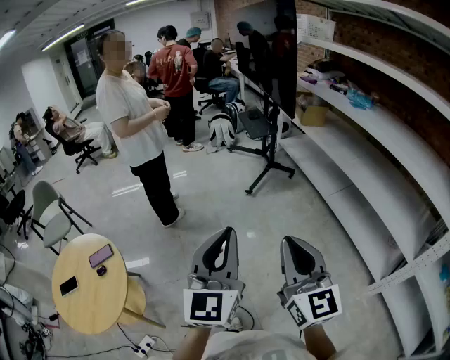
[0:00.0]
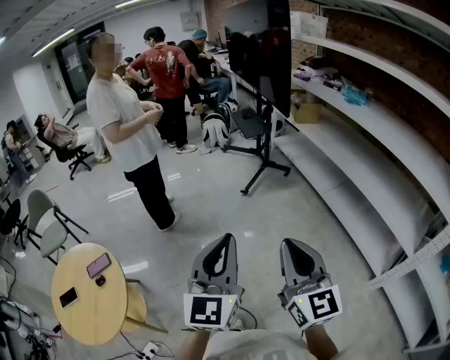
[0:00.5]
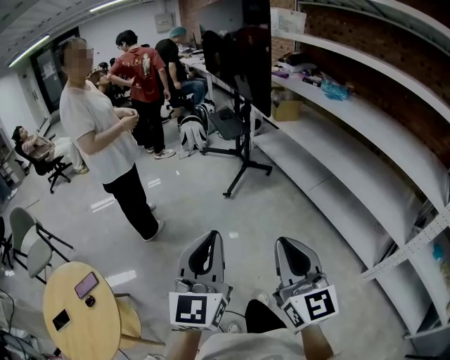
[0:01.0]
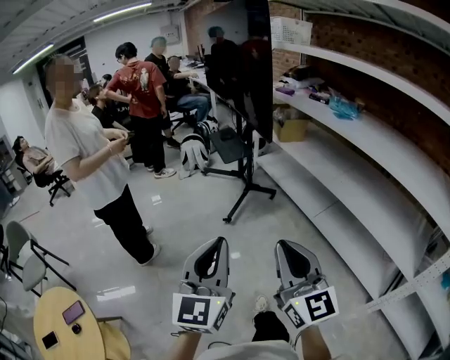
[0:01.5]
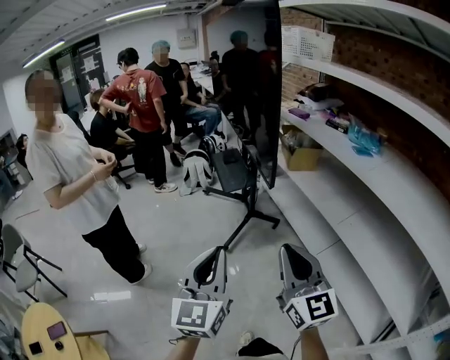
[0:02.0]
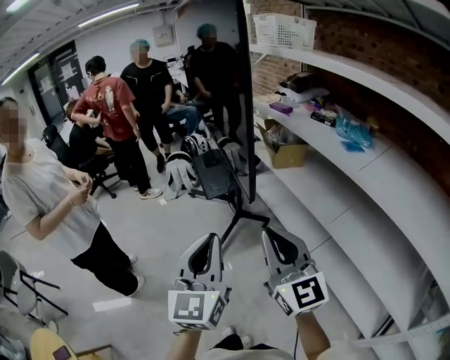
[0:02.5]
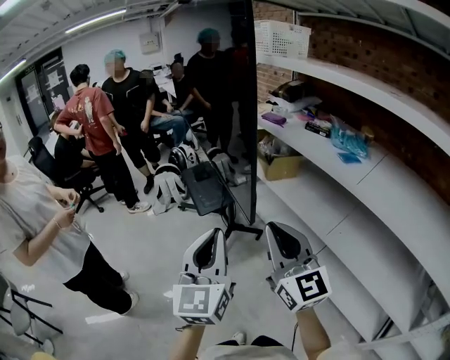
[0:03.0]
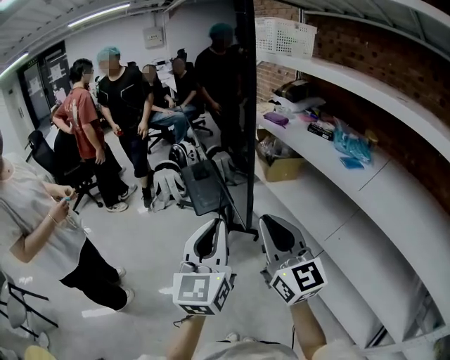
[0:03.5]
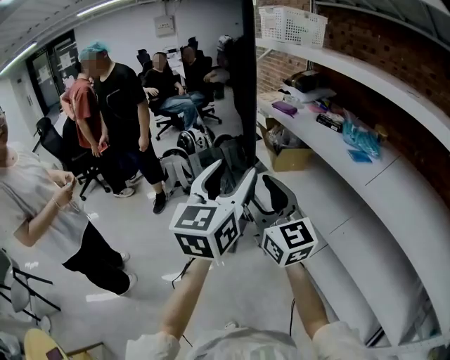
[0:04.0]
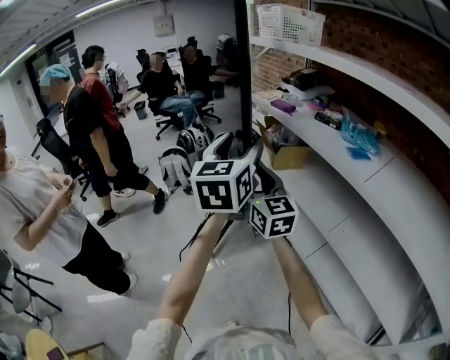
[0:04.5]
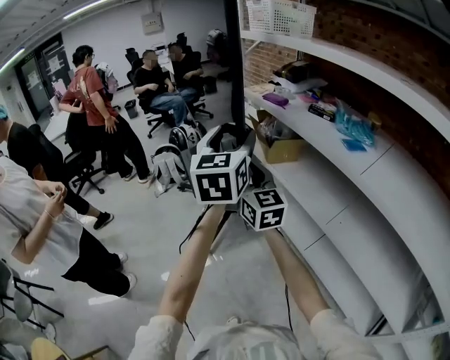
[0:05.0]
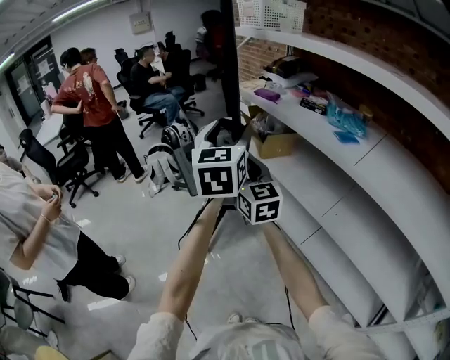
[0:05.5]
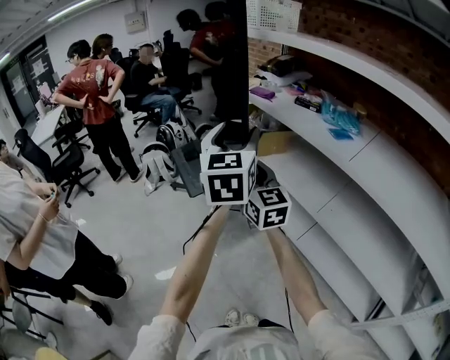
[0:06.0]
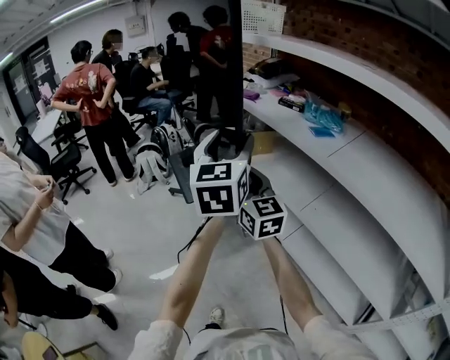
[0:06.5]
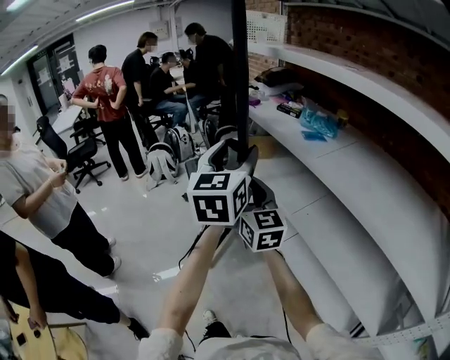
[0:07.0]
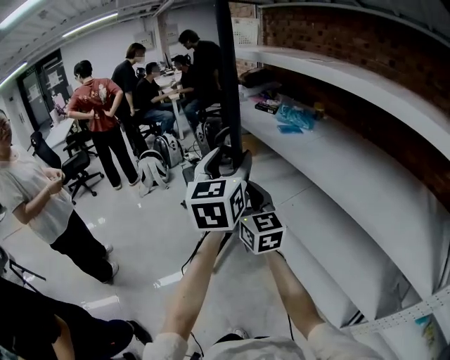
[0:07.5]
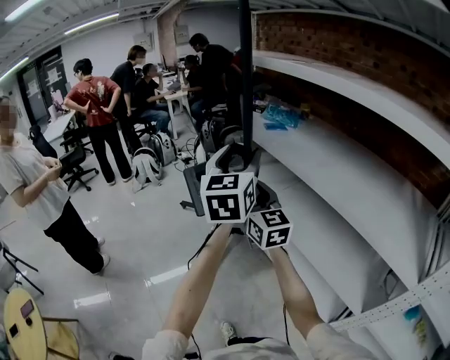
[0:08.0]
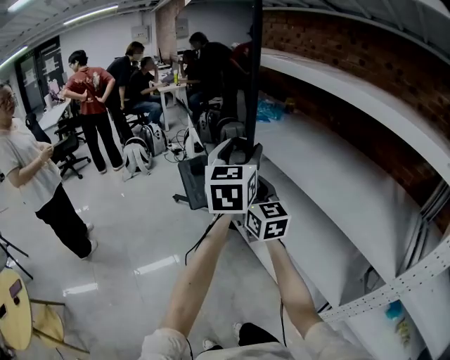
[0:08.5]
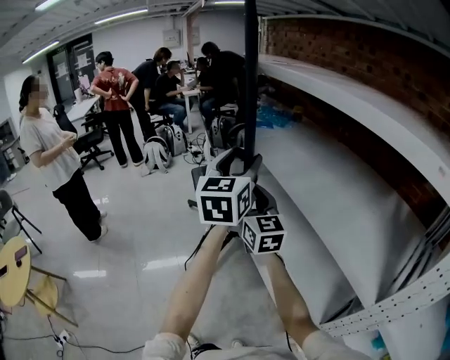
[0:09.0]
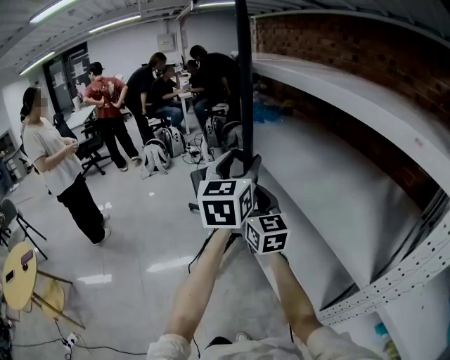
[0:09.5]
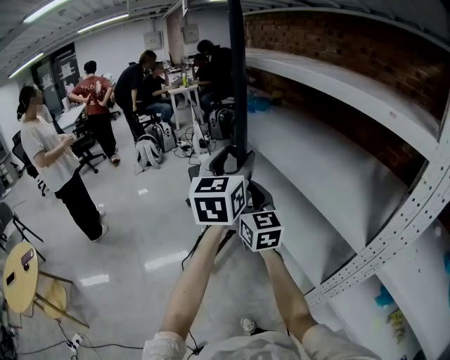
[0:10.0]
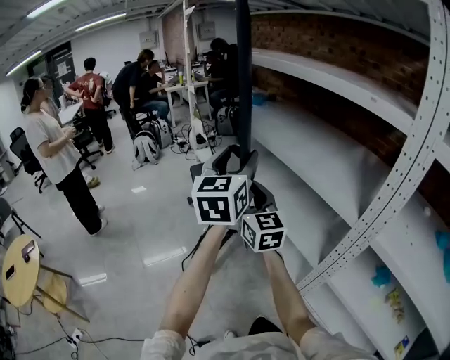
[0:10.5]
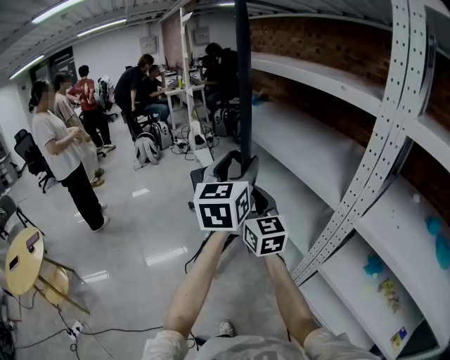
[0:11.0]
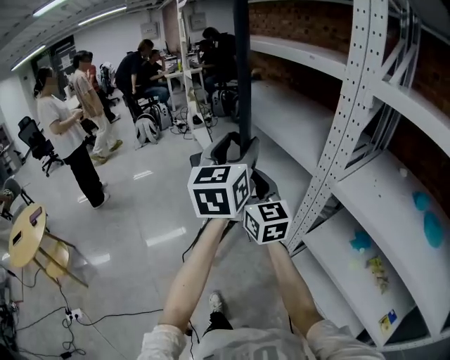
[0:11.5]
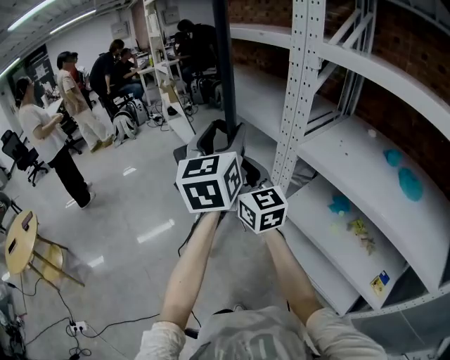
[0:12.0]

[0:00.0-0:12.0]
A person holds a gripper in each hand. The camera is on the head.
0:00.0 to 0:02.0: Both grippers are carried forward, approximately 50 cm.
0:02.0 to 0:04.0: The left gripper heads forward and to the right, covering some 35 cm, and opens. Meanwhile the right gripper moves forward, approximately 30 cm, and opens its fingers.
0:04.0 to 0:06.0: Both grippers move forward, approximately 5 cm.
0:06.0 to 0:08.0: The pair of grippers is taken backward and to the right, approximately 40 cm.
0:08.0 to 0:10.0: The grippers both shift backward and to the right by roughly 30 cm.
0:10.0 to 0:12.0: The two grippers travel together, backward, about 50 cm.

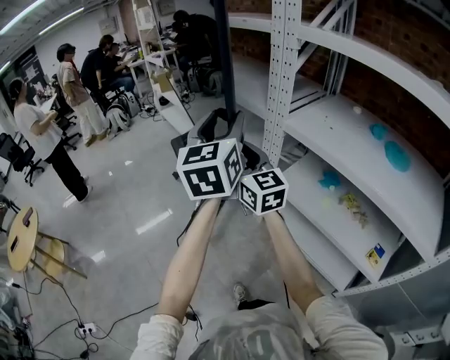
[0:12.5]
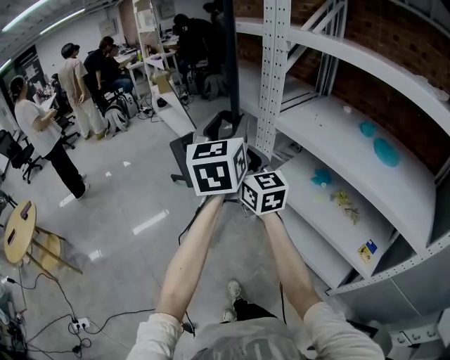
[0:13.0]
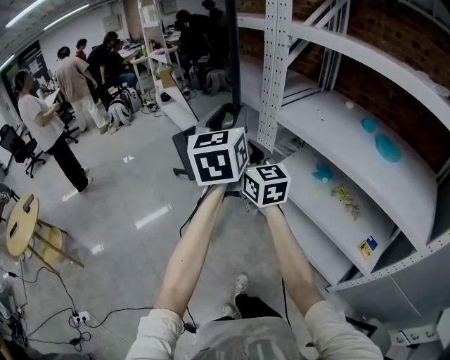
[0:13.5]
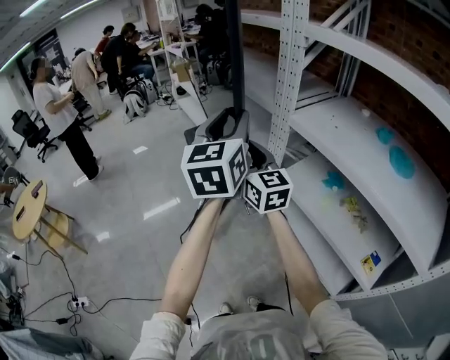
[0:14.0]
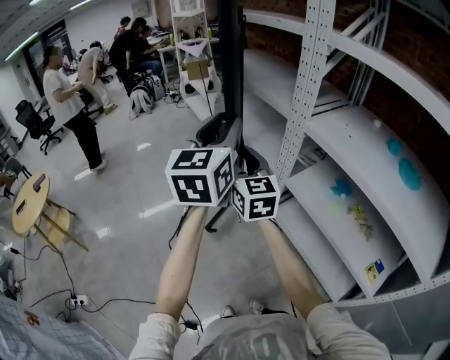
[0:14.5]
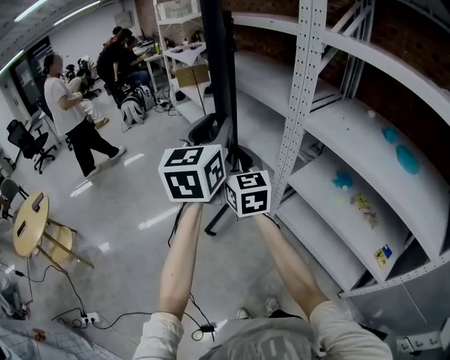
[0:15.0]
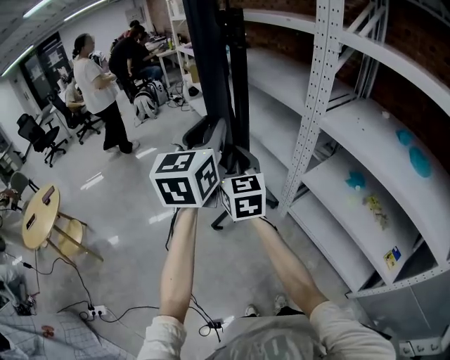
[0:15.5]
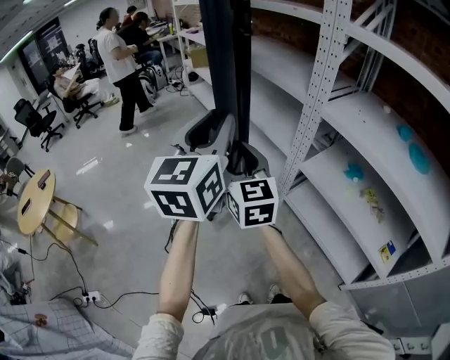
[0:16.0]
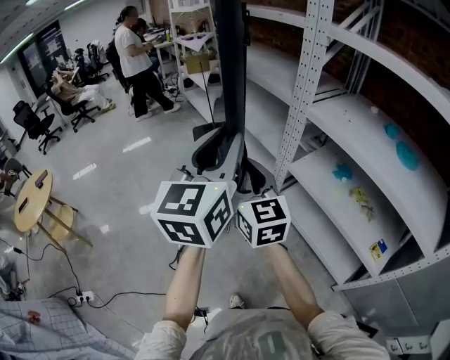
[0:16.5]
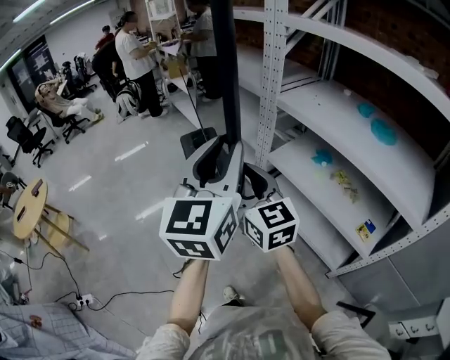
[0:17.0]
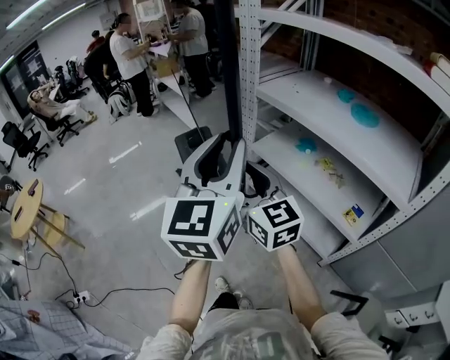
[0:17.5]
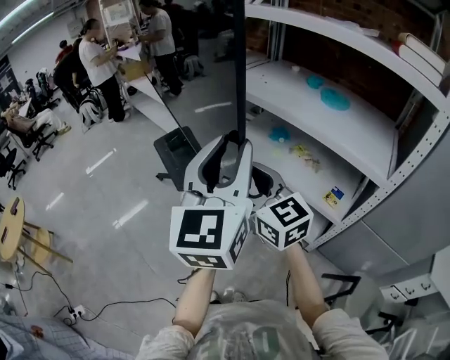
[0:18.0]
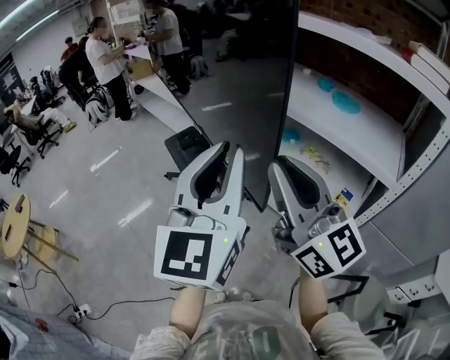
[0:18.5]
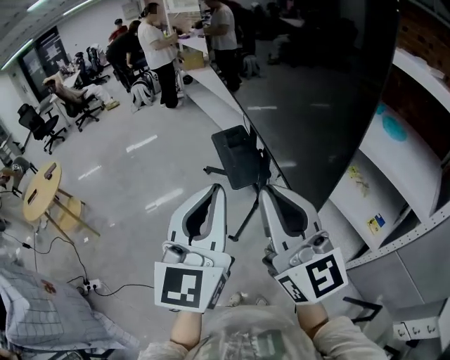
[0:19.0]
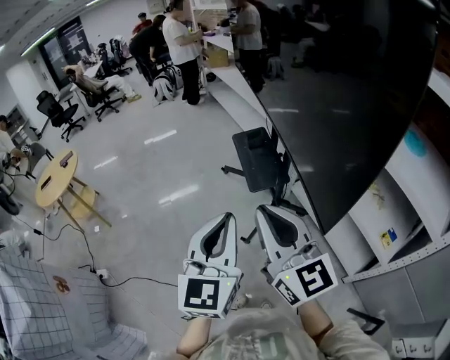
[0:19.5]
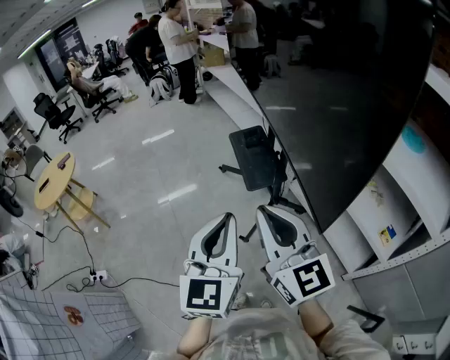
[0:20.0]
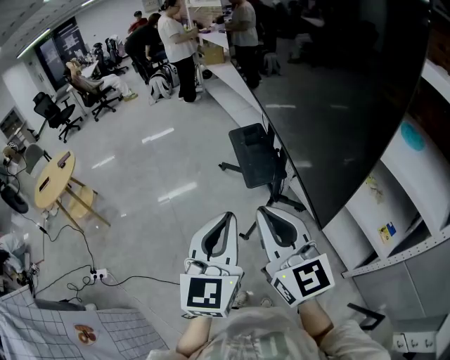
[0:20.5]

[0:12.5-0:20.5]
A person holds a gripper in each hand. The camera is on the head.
0:12.5 to 0:14.5: The grippers both shift to the left by roughly 5 cm.
0:14.5 to 0:16.5: Both grippers travel together backward, roughly 15 cm.
0:16.5 to 0:18.5: The left gripper is displaced backward and to the right by approximately 25 cm. The right gripper is displaced backward, to the right and upward by roughly 35 cm, turns by approximately 20 degrees, and closes up.
0:18.5 to 0:20.5: The two grippers go approximately 20 cm to the left and downward. The right gripper swivels about 20 degrees; the left gripper rotates roughly 30 degrees.

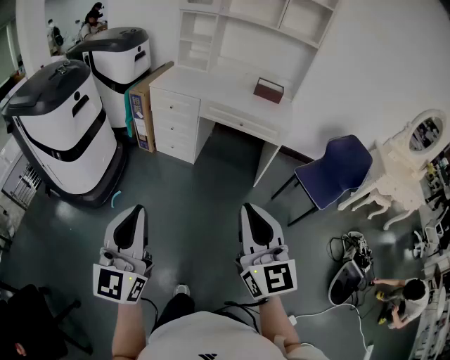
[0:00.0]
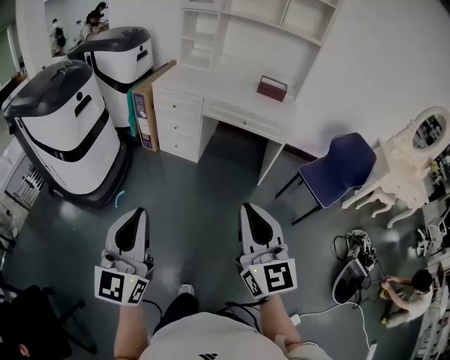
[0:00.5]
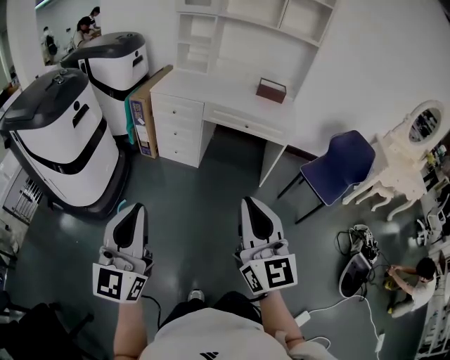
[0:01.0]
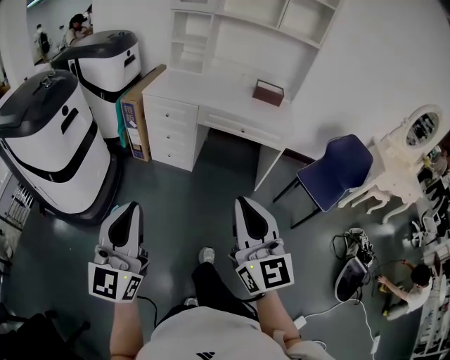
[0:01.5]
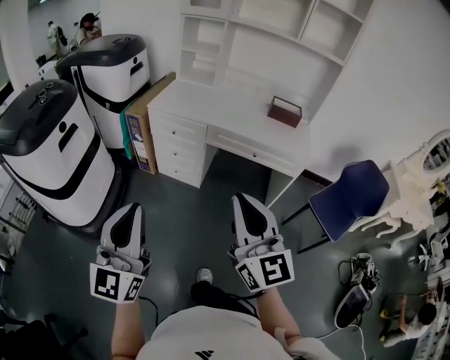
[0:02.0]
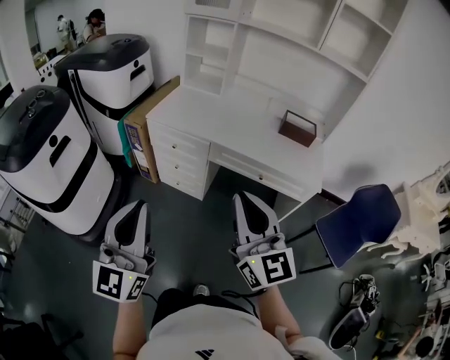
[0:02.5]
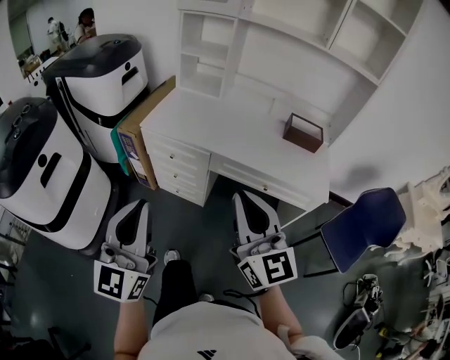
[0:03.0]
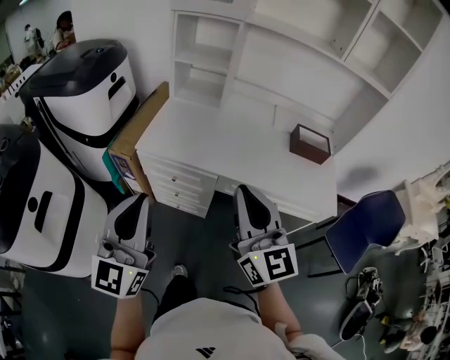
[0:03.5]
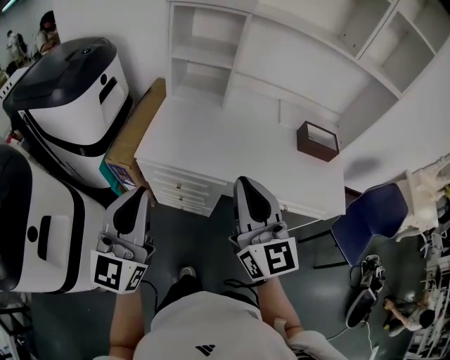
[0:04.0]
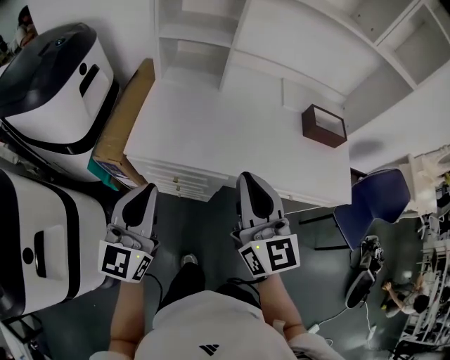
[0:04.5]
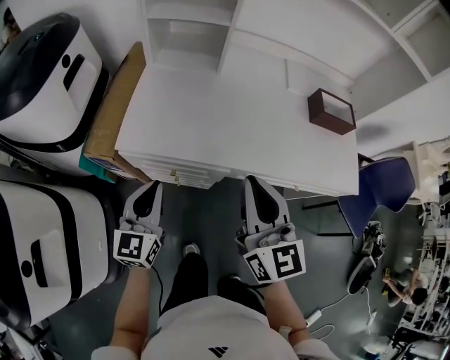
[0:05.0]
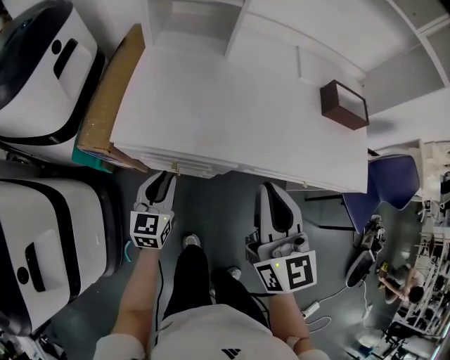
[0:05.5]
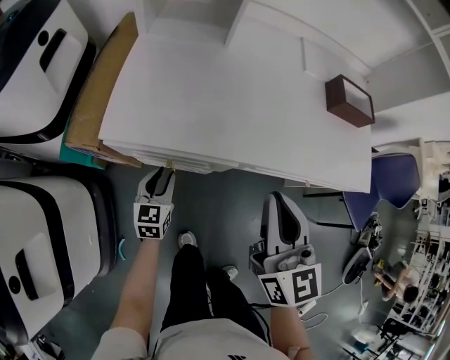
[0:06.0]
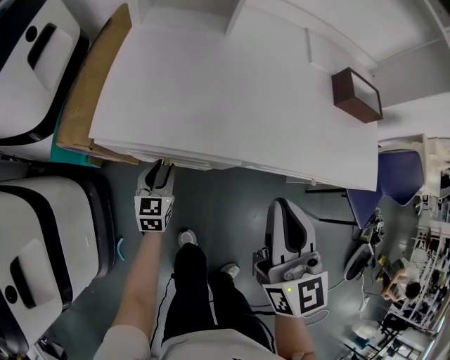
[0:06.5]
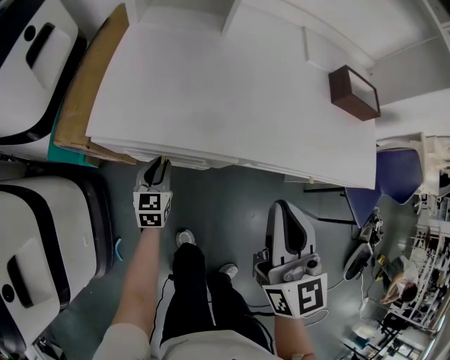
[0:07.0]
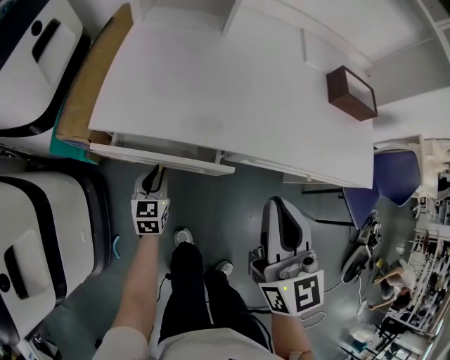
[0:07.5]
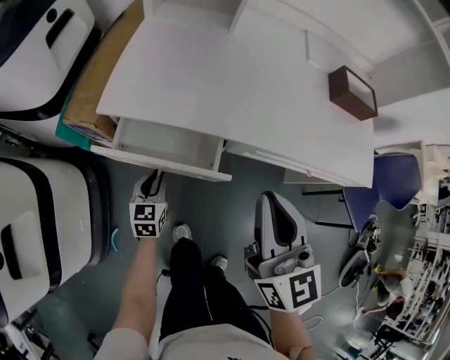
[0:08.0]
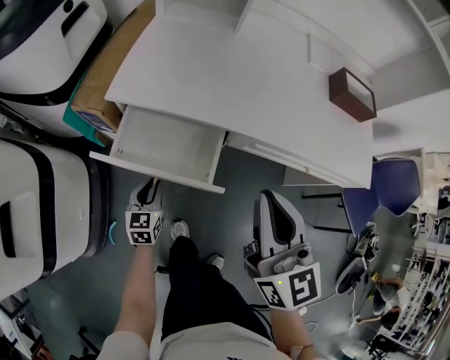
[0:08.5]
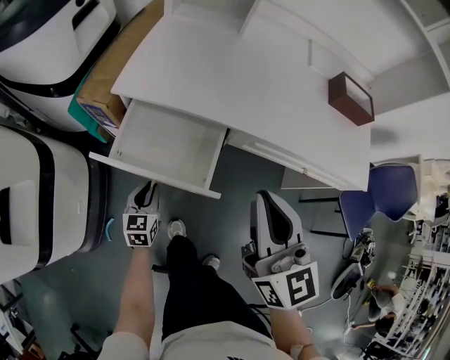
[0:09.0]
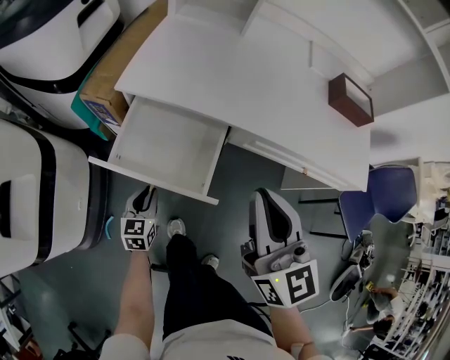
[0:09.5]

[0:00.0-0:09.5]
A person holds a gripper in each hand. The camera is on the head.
0:00.0 to 0:02.0: Both grippers travel together forward, about 25 cm.
0:02.0 to 0:04.0: The two grippers travel together, forward, approximately 50 cm.
0:04.0 to 0:05.5: The right gripper goes about 15 cm downward and forward. Meanwhile the left gripper heads downward and forward, covering about 35 cm, and points its fingers roughly 30 degrees further downward.
0:05.5 to 0:07.5: The left gripper is displaced downward by about 15 cm. Meanwhile the right gripper ends up about 5 cm from where it was.
0:07.5 to 0:09.5: The left gripper goes approximately 15 cm backward. The right gripper shifts approximately 10 cm backward.
